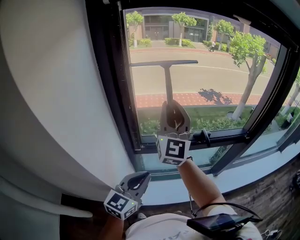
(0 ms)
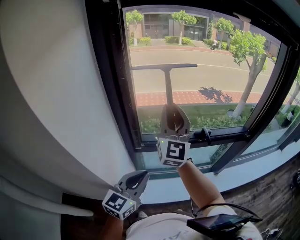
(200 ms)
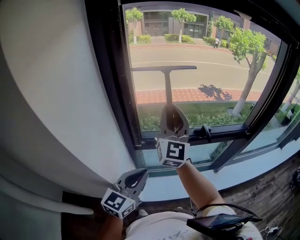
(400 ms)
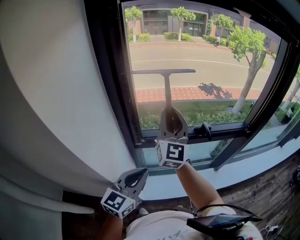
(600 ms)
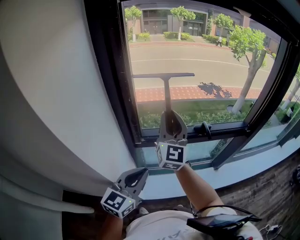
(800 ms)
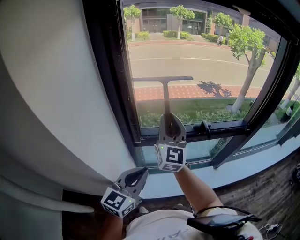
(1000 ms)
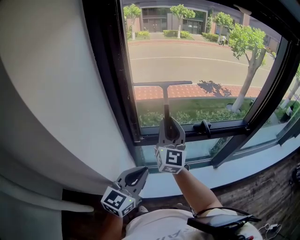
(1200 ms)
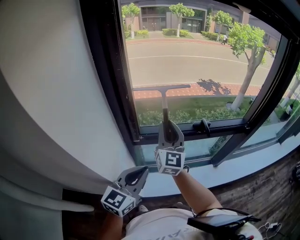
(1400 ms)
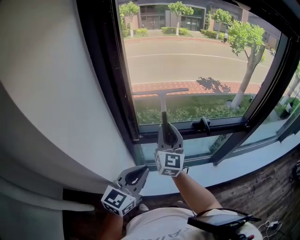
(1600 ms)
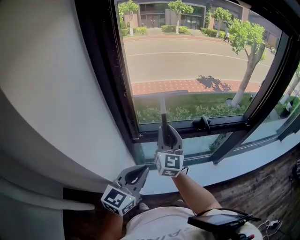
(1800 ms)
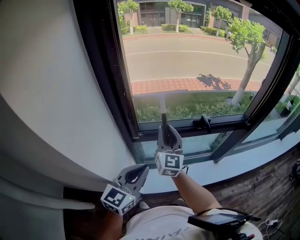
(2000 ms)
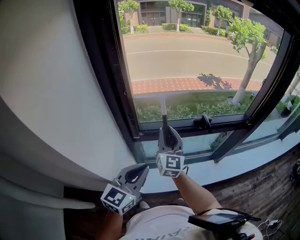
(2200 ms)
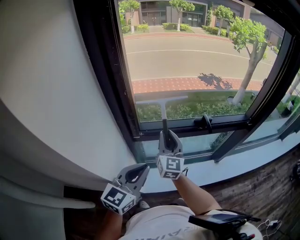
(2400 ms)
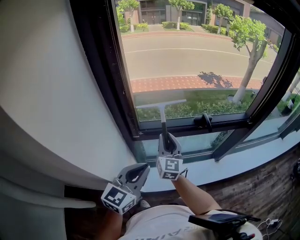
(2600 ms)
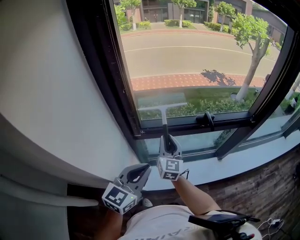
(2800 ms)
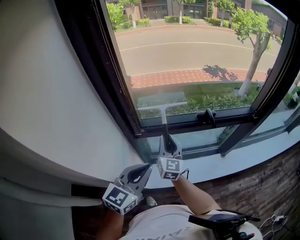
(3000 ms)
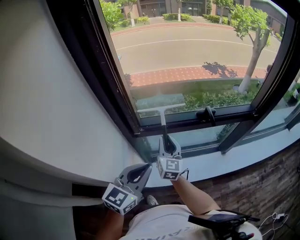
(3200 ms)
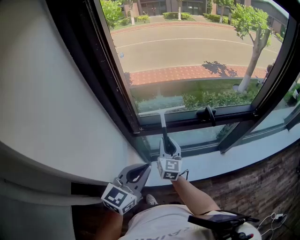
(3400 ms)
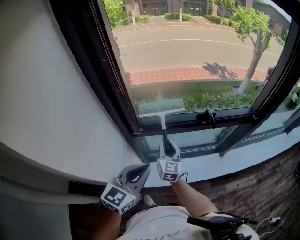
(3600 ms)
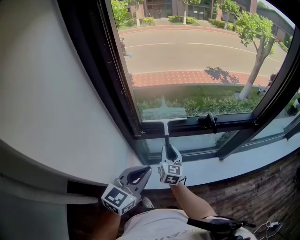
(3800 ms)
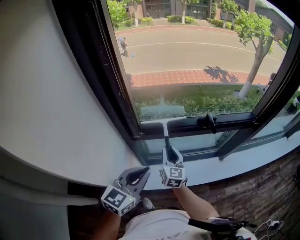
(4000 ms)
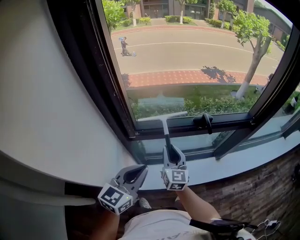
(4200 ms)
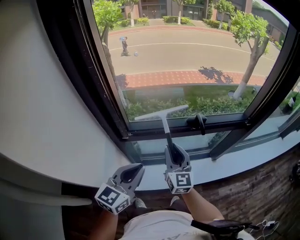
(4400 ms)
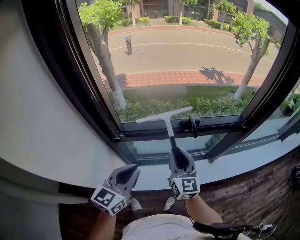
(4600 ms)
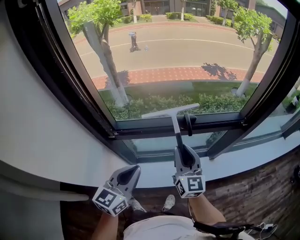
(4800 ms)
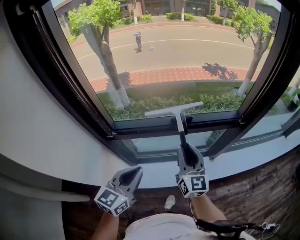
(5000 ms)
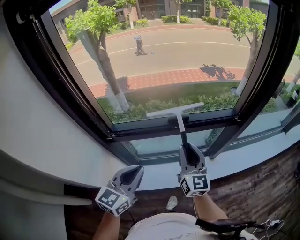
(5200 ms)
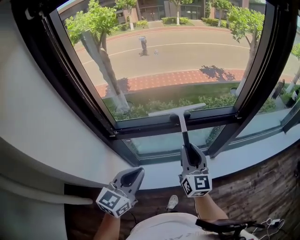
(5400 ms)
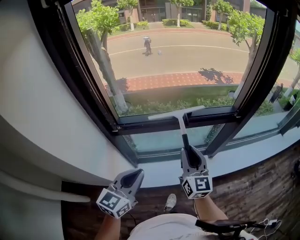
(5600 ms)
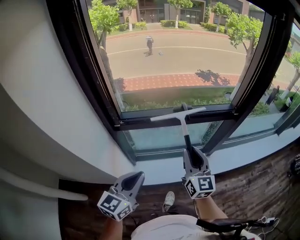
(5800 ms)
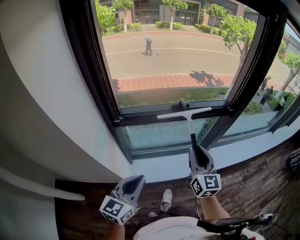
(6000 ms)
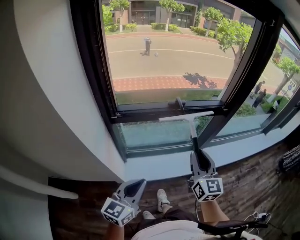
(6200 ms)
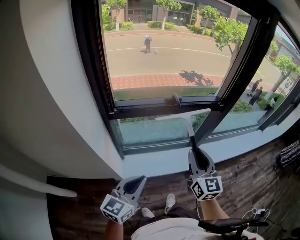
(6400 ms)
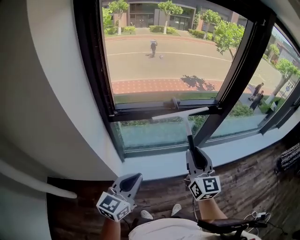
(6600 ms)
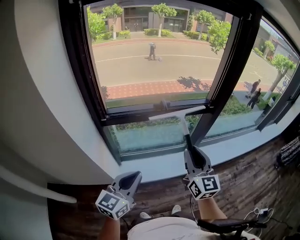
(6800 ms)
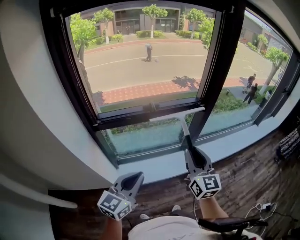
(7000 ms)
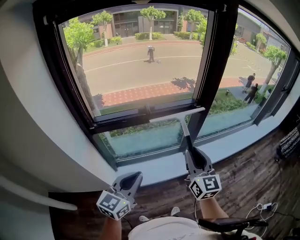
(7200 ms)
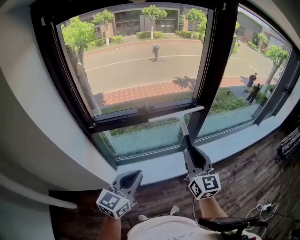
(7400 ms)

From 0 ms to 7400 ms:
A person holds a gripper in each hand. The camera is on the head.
From 0 ms to 1400 ms: The right gripper shifts approximately 15 cm downward.
From 1400 ms to 3000 ms: The right gripper goes some 15 cm downward.
From 3000 ms to 4400 ms: The right gripper heads to the right, covering some 10 cm, and reaches about 10 cm downward, then returns.
From 4400 ms to 6000 ms: The left gripper shifts approximately 20 cm backward and to the right. Meanwhile the right gripper shifts approximately 20 cm to the right and backward.
From 6000 ms to 7400 ms: Both grippers travel together to the right, some 15 cm.

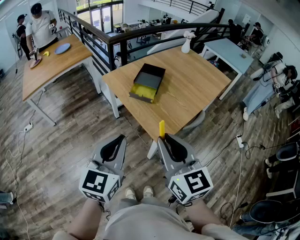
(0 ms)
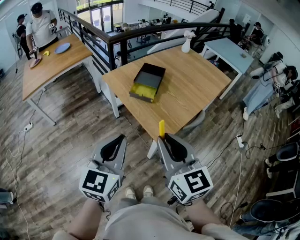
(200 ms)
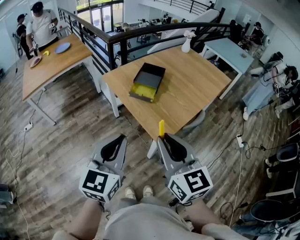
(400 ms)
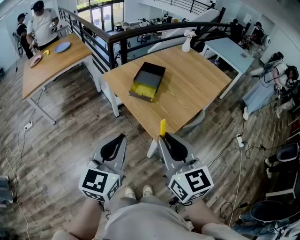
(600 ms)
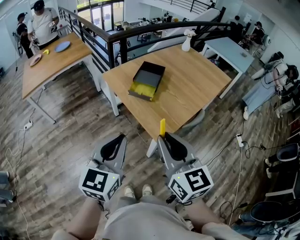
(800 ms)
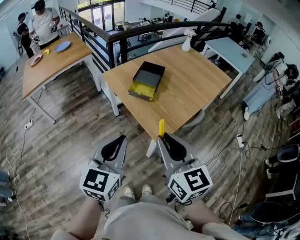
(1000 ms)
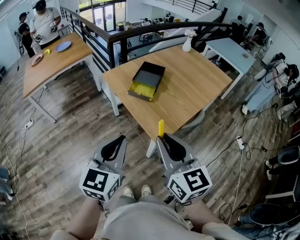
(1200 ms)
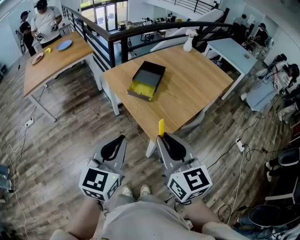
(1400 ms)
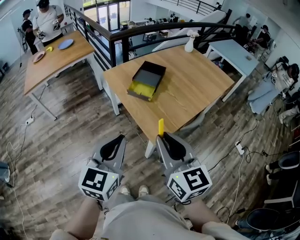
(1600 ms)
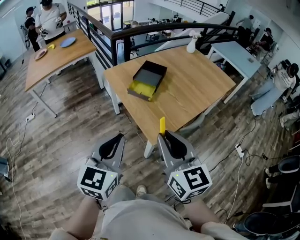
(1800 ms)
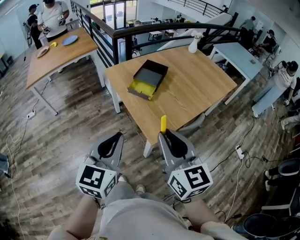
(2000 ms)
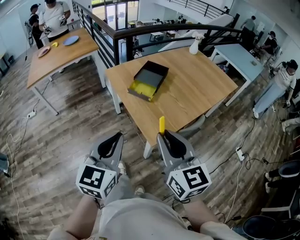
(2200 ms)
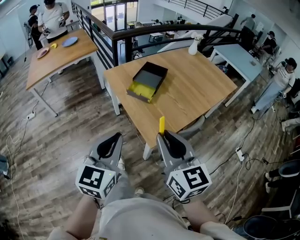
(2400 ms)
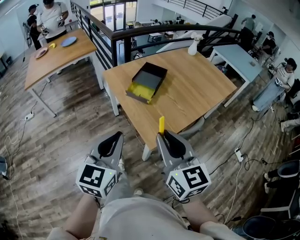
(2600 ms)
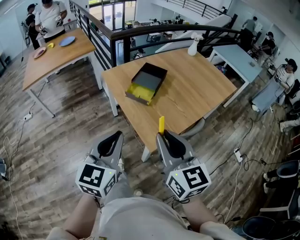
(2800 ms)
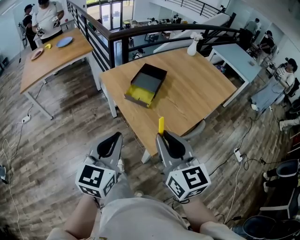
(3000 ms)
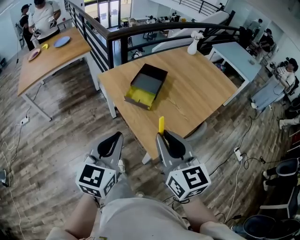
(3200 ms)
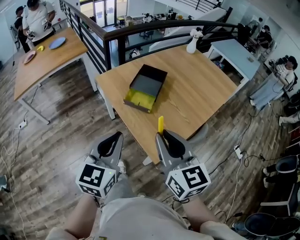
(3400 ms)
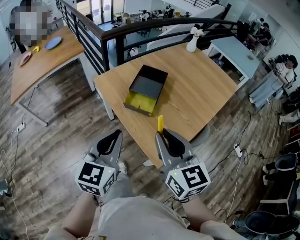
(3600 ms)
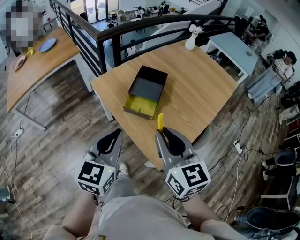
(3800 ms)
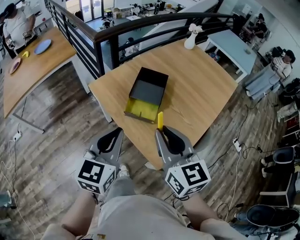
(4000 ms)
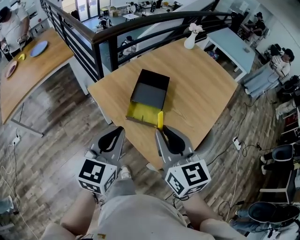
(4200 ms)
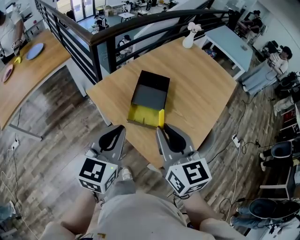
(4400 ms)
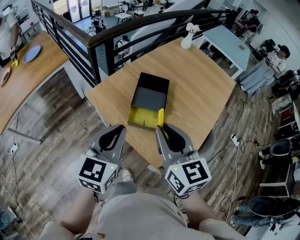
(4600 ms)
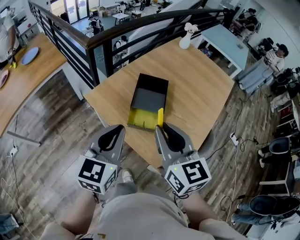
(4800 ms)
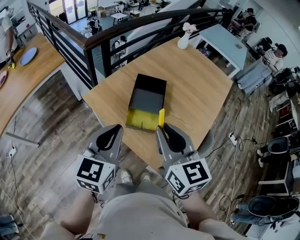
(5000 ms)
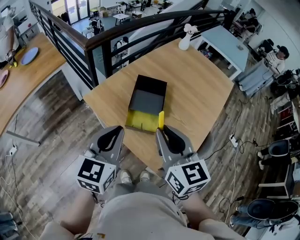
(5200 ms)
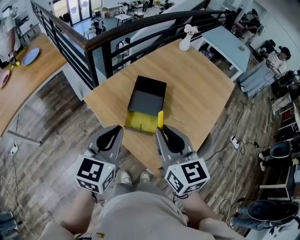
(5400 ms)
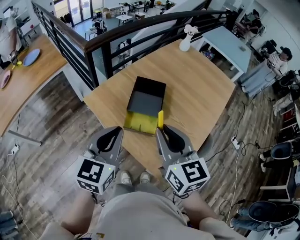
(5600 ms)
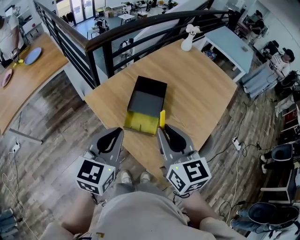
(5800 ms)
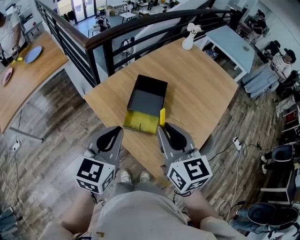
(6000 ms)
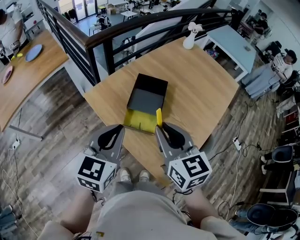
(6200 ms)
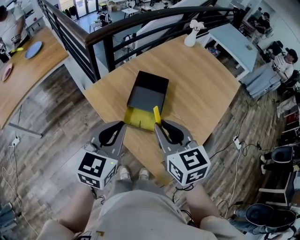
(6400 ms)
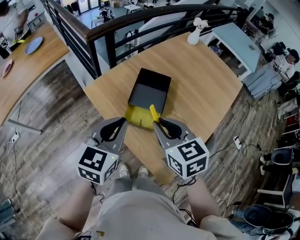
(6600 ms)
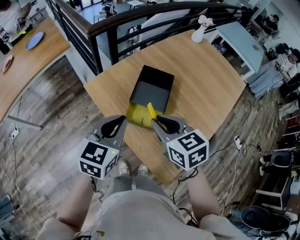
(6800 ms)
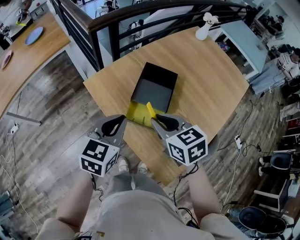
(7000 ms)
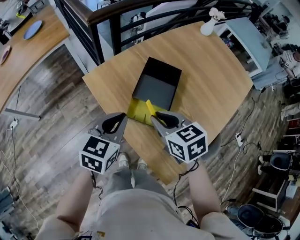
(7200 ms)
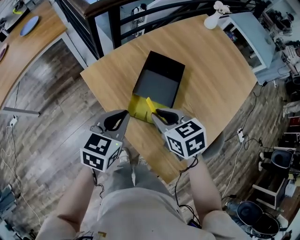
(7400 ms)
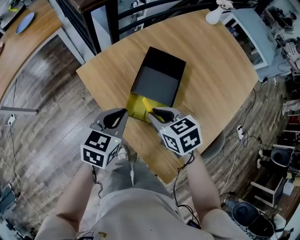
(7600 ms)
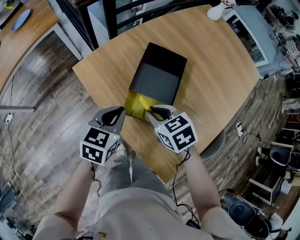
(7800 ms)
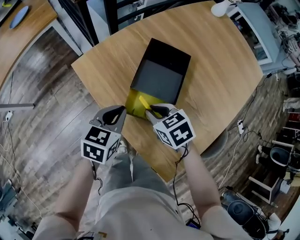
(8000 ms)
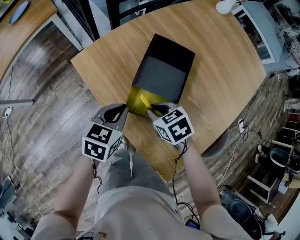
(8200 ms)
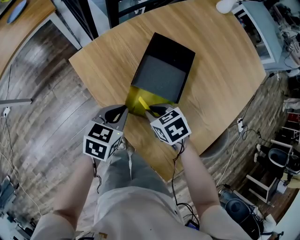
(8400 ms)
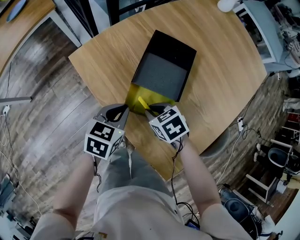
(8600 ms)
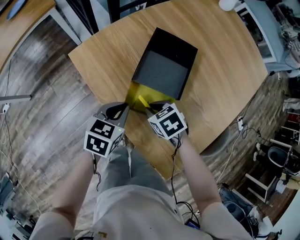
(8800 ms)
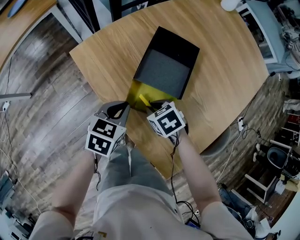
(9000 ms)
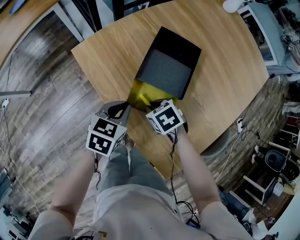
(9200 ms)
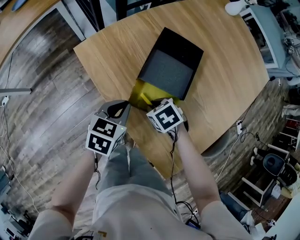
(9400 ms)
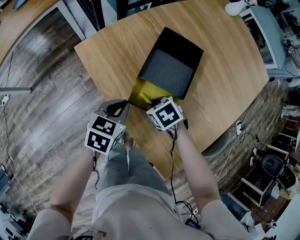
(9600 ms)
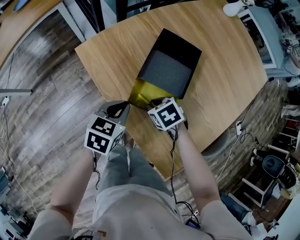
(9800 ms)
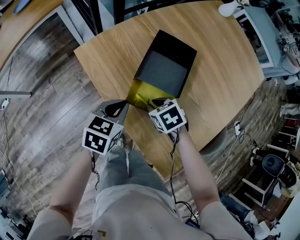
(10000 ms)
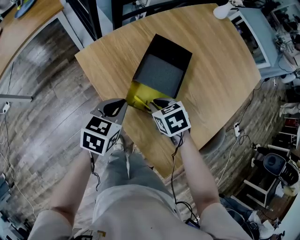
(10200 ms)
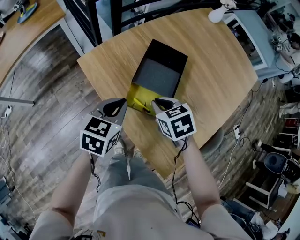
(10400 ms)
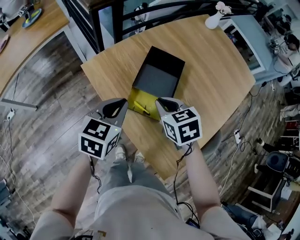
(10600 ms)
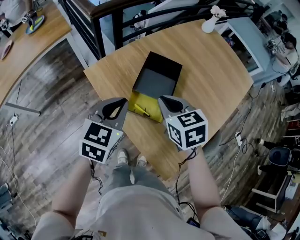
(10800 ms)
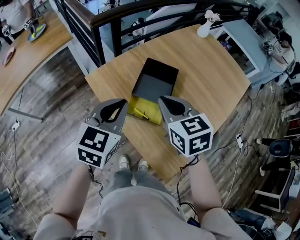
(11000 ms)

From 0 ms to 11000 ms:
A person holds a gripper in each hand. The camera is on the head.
From 0 ms to 1600 ms: The right gripper shifts by approximately 5 cm; the left gripper moves approximately 5 cm.
From 1600 ms to 3200 ms: The two grippers go about 10 cm forward.
From 3200 ms to 4800 ms: Both grippers move forward and to the left, approximately 30 cm.
From 4800 ms to 6200 ms: The left gripper moves some 5 cm, while the right gripper moves about 5 cm.
From 6200 ms to 7800 ms: The two grippers go some 25 cm downward and forward. The right gripper tips its fingers downward by roughly 30 degrees, while the left gripper turns by about 20 degrees.
From 7800 ms to 9400 ms: The right gripper goes about 15 cm downward, and rotates approximately 20 degrees. Meanwhile the left gripper travels downward by approximately 10 cm.
From 9400 ms to 11000 ms: Both grippers move upward, roughly 30 cm. The right gripper tilts its fingers some 40 degrees upward. Meanwhile the left gripper changes its angle by approximately 30 degrees.

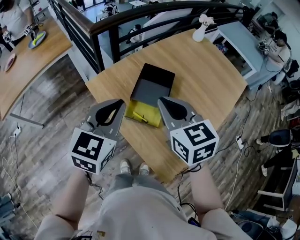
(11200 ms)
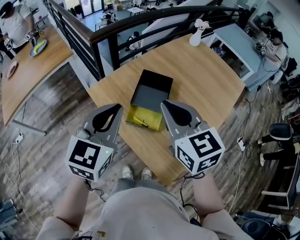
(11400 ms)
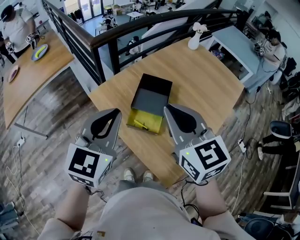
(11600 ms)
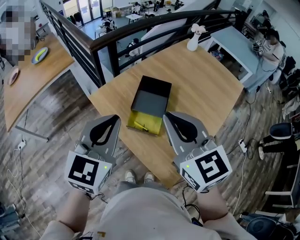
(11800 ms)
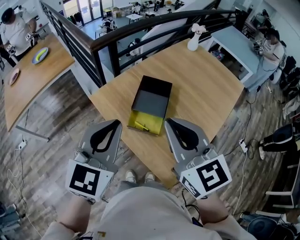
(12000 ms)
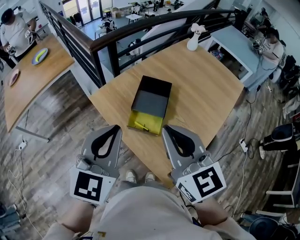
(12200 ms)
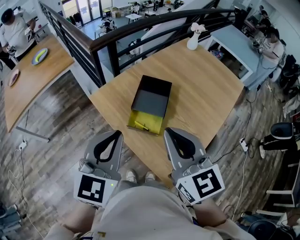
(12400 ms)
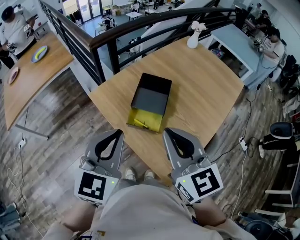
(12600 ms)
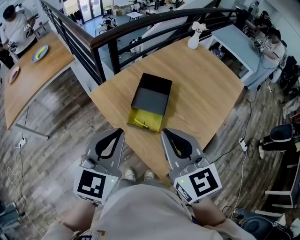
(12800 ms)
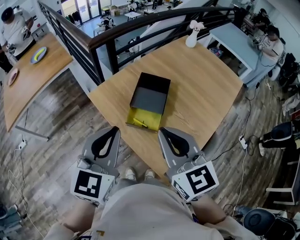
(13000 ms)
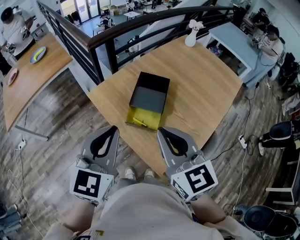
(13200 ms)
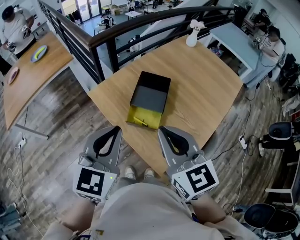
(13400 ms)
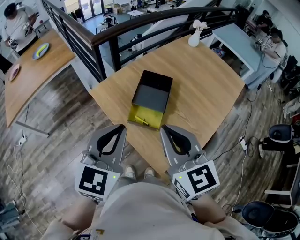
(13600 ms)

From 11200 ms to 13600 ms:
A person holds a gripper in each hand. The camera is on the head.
From 11200 ms to 12400 ms: The right gripper is displaced backward and upward by roughly 15 cm, while the left gripper goes roughly 10 cm backward.
From 12400 ms to 13600 ms: The grippers move only a little.

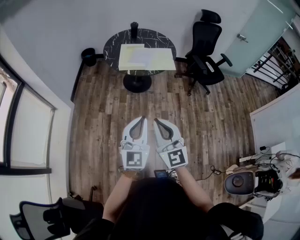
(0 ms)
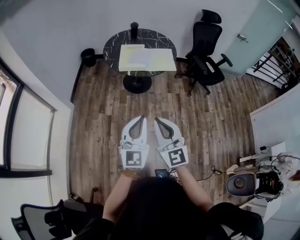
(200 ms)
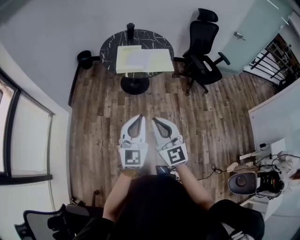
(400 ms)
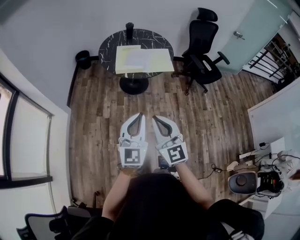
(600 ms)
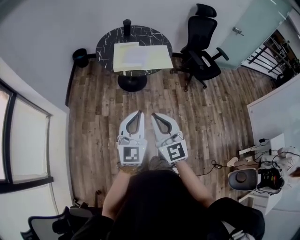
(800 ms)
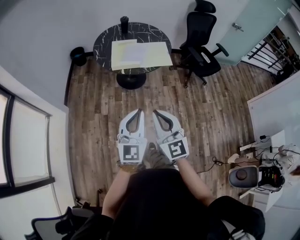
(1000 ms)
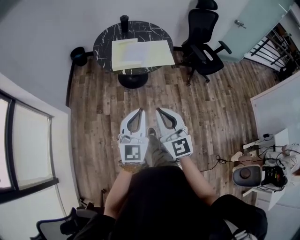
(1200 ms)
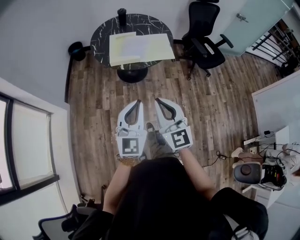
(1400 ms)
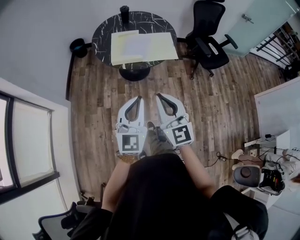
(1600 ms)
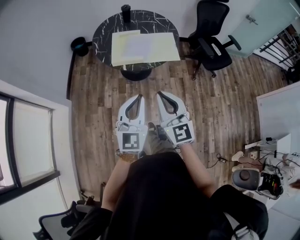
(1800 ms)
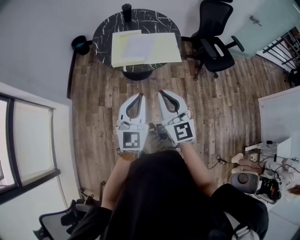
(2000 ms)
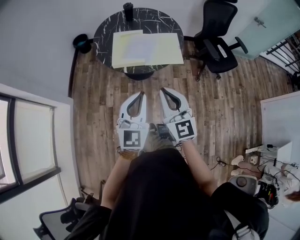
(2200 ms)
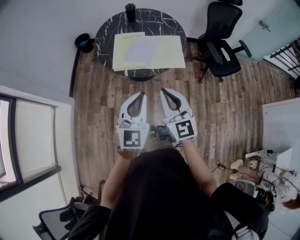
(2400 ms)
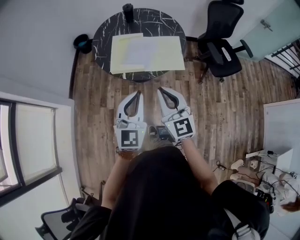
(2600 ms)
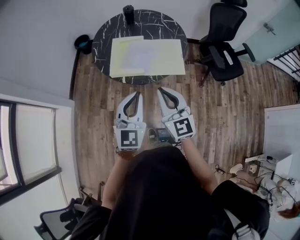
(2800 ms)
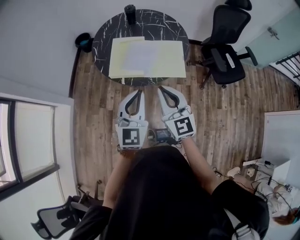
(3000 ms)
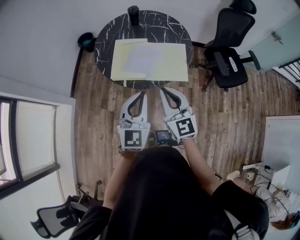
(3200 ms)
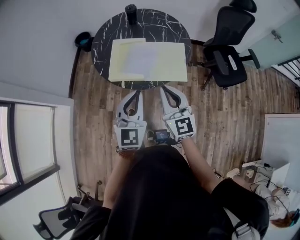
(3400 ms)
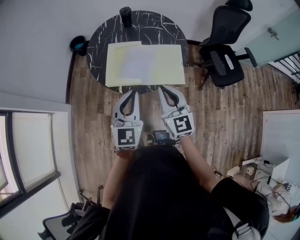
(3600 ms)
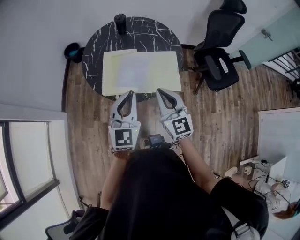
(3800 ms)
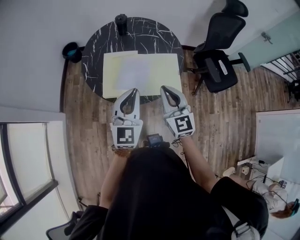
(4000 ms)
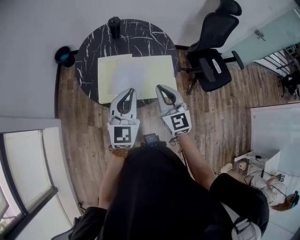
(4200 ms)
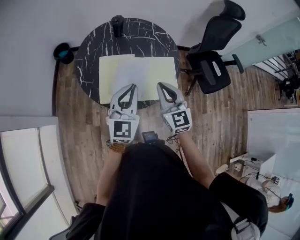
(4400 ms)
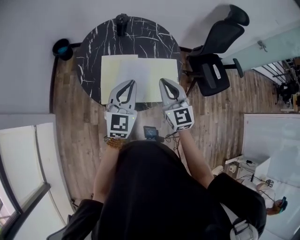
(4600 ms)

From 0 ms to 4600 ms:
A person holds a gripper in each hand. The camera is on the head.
From 0 ms to 1600 ms: Both grippers move forward, approximately 20 cm.
From 1600 ms to 3000 ms: Both grippers move forward, approximately 25 cm.
From 3000 ms to 4600 ms: Both grippers move forward, roughly 25 cm.
